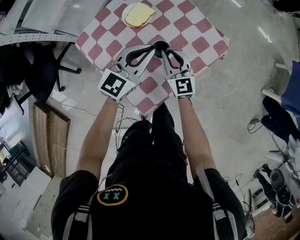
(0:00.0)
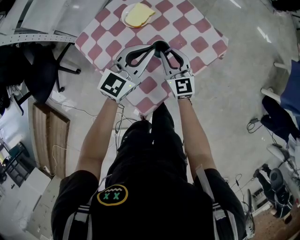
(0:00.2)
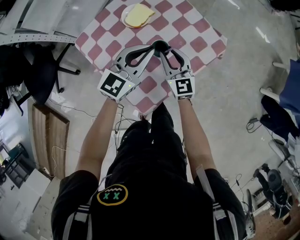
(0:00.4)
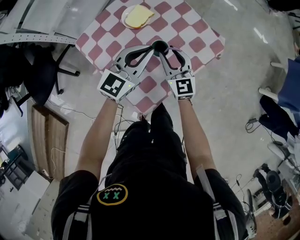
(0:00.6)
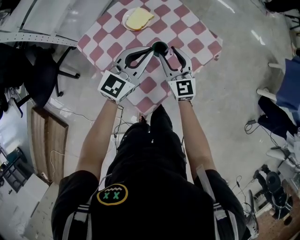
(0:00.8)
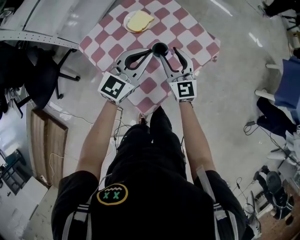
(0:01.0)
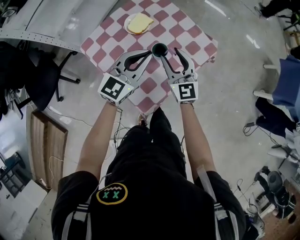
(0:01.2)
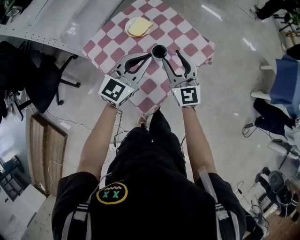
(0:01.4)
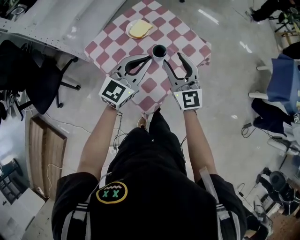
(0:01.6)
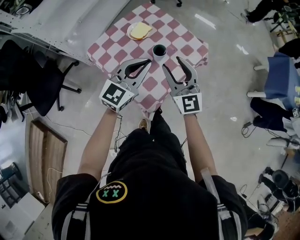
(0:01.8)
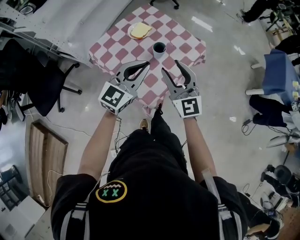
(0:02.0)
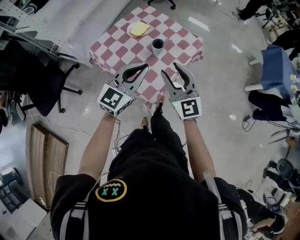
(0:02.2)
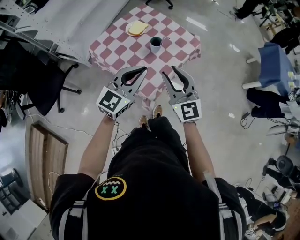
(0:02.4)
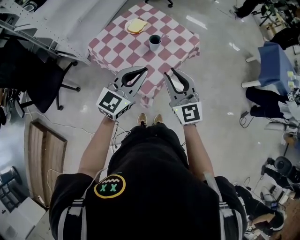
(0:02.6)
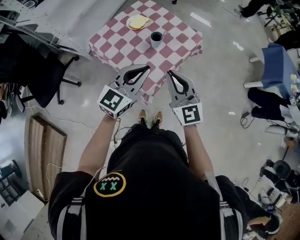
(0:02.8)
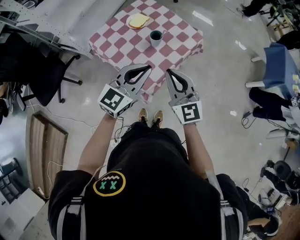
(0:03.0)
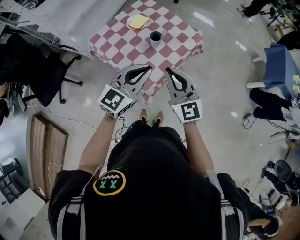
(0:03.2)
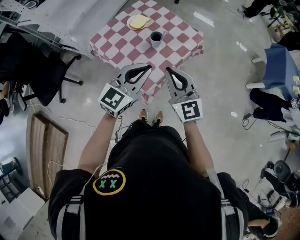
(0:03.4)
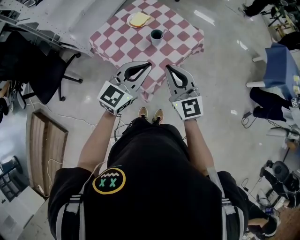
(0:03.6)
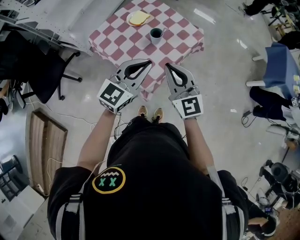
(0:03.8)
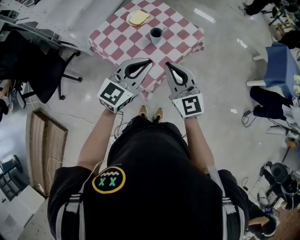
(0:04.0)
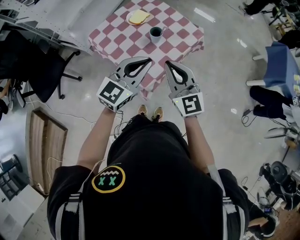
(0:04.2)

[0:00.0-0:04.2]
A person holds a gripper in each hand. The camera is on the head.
0:00.0 to 0:01.4: Both grippers travel together upward and backward, roughly 15 cm. The right gripper opens its fingers.
0:01.4 to 0:02.8: The right gripper goes some 25 cm backward and upward, and closes up, while the left gripper travels backward by roughly 20 cm.
0:02.8 to 0:04.2: There are only small adjustments of the grippers.

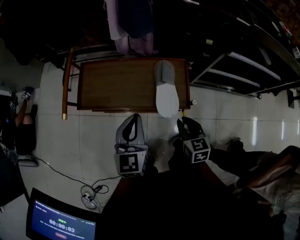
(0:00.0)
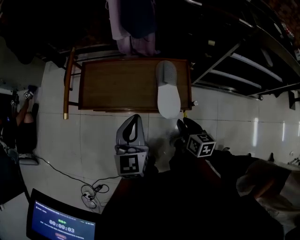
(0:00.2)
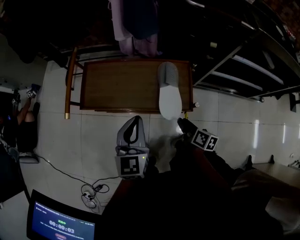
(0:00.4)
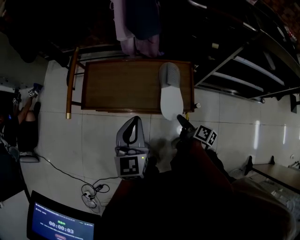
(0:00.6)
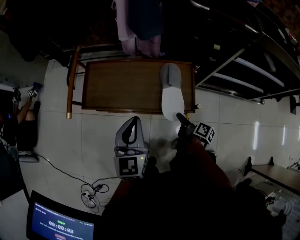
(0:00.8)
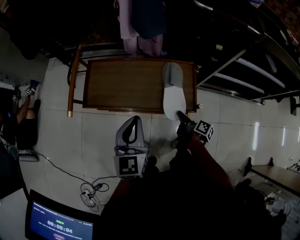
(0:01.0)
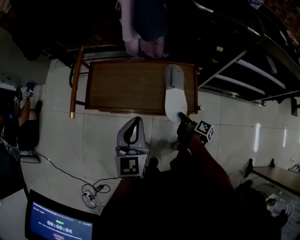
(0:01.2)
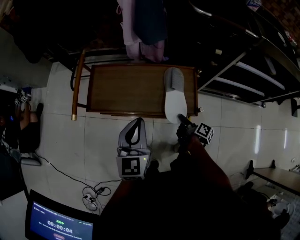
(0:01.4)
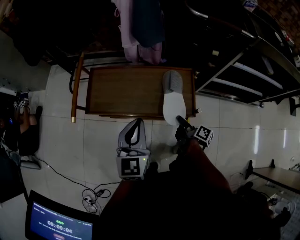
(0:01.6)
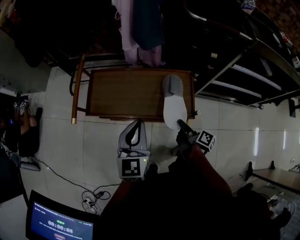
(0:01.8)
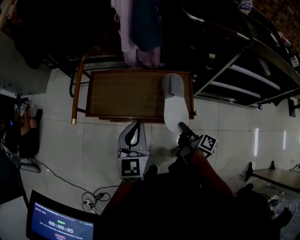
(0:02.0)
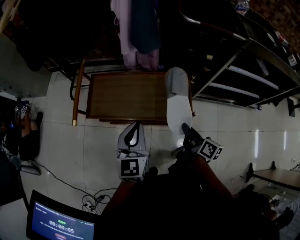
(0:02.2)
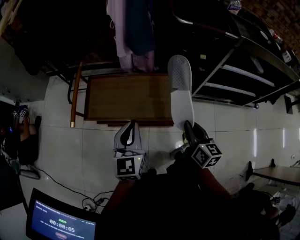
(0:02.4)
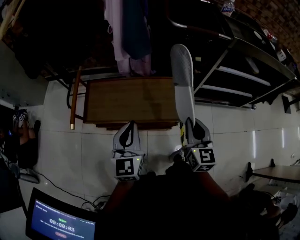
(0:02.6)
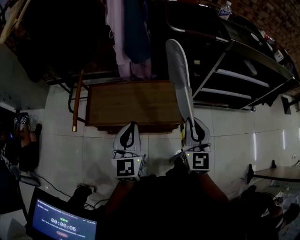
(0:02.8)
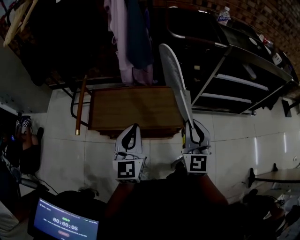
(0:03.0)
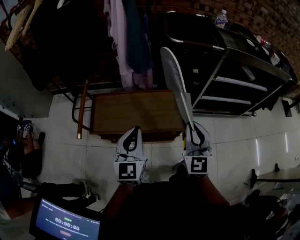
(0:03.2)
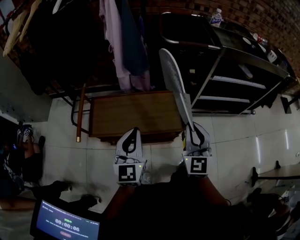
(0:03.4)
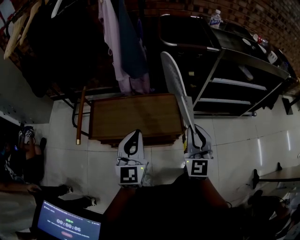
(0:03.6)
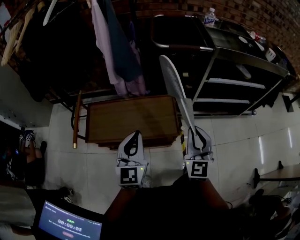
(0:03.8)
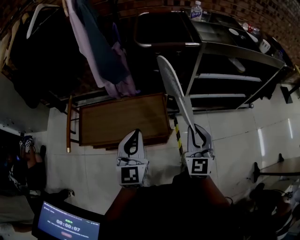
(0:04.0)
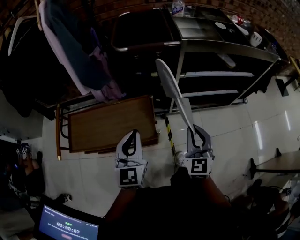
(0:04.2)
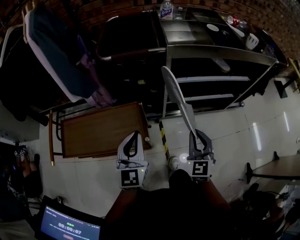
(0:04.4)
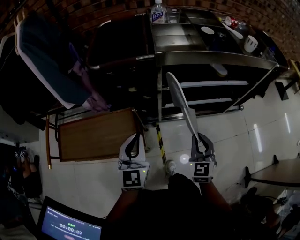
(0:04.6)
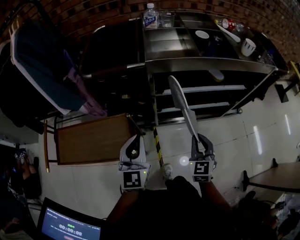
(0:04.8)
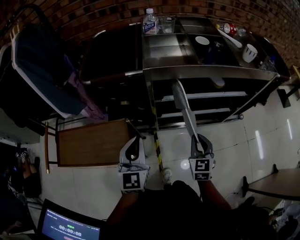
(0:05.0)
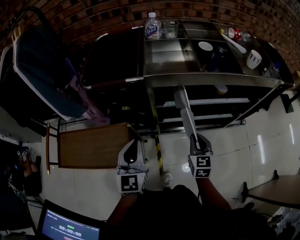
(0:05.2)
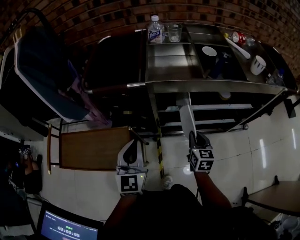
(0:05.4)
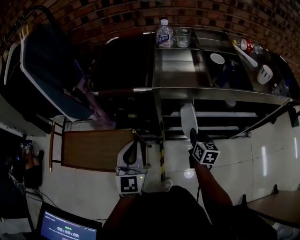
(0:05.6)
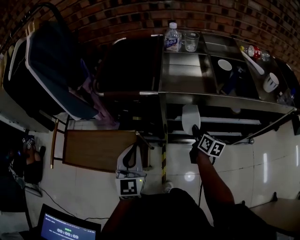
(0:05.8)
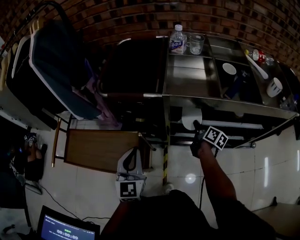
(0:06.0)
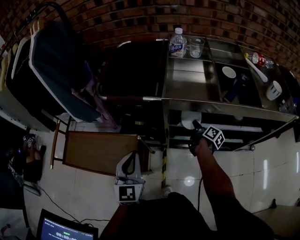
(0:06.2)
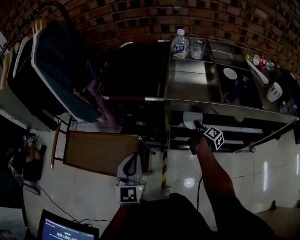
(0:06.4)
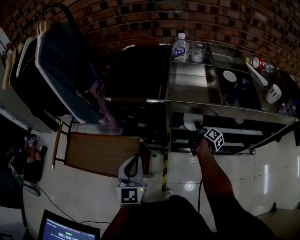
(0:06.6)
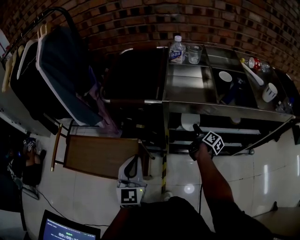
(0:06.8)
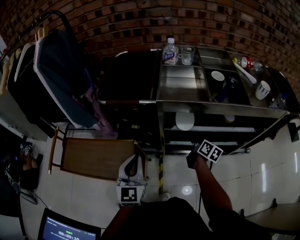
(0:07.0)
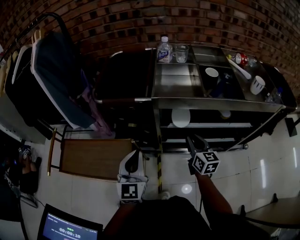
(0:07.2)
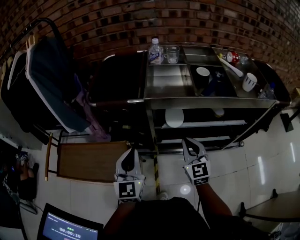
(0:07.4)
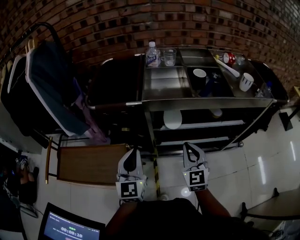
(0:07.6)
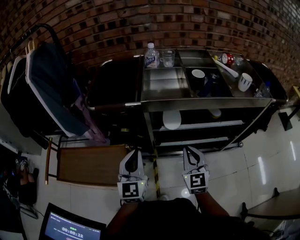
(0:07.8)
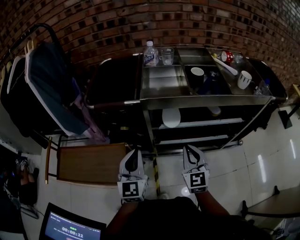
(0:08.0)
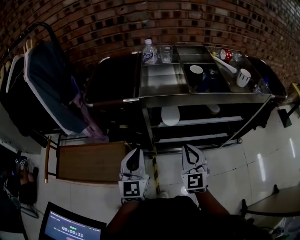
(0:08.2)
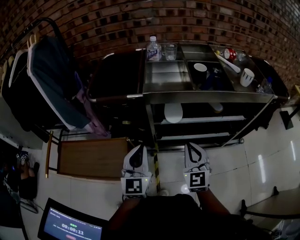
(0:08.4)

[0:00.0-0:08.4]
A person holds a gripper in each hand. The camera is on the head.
0:00.0 to 0:01.4: The right gripper heads downward and forward, covering about 10 cm, rotates around the line of its fingers by approximately 70 degrees, clockwise from behind, and opens, then closes again.
0:01.4 to 0:02.8: The left gripper goes about 5 cm upward. Meanwhile the right gripper heads upward, covering about 30 cm, and twists about 90 degrees counterclockwise, seen from behind.
0:02.8 to 0:04.2: The two grippers go approximately 20 cm to the right.
0:04.2 to 0:05.6: The grippers both shift forward and to the right by approximately 25 cm. The right gripper twists about 40 degrees clockwise, seen from behind.
0:05.6 to 0:07.0: The right gripper moves forward, some 5 cm, changes its angle by about 30 degrees, and opens.
0:07.0 to 0:08.4: The left gripper goes roughly 5 cm to the right. Meanwhile the right gripper travels upward and backward by roughly 20 cm, twists about 70 degrees counterclockwise, seen from behind, and closes.

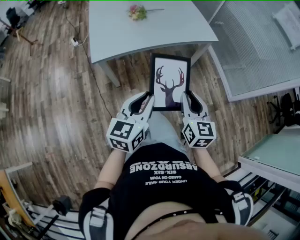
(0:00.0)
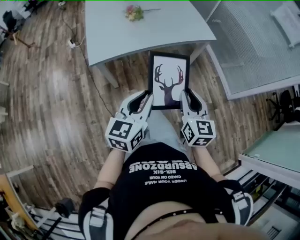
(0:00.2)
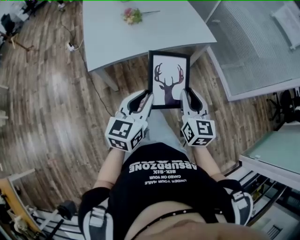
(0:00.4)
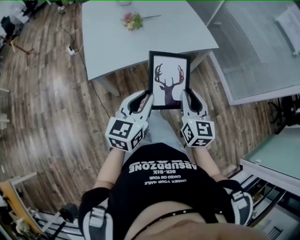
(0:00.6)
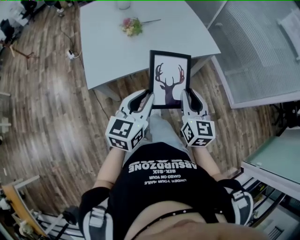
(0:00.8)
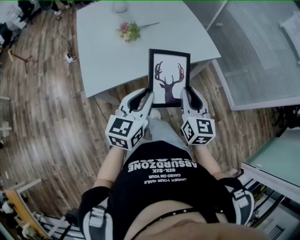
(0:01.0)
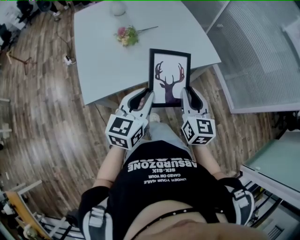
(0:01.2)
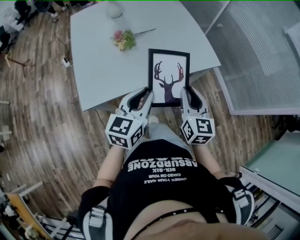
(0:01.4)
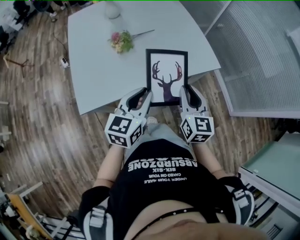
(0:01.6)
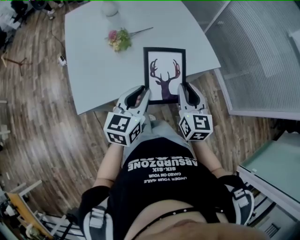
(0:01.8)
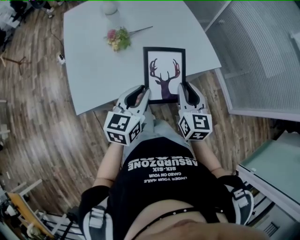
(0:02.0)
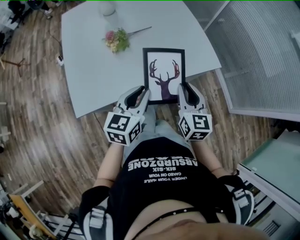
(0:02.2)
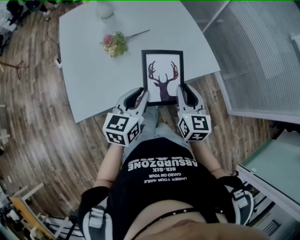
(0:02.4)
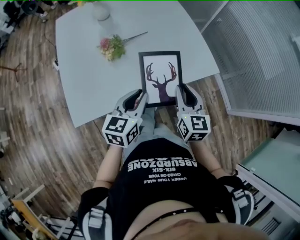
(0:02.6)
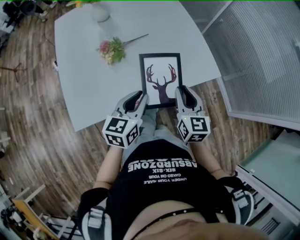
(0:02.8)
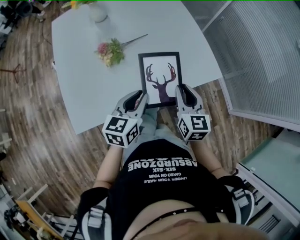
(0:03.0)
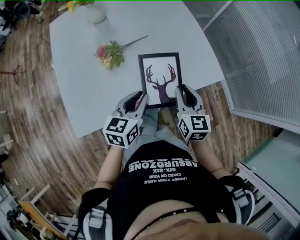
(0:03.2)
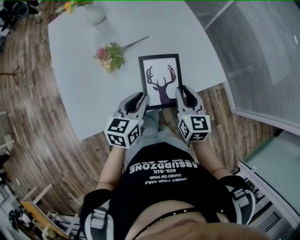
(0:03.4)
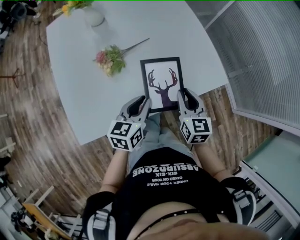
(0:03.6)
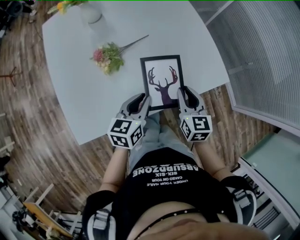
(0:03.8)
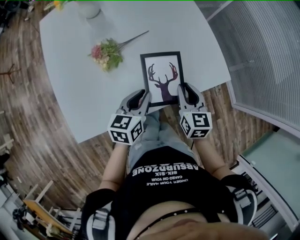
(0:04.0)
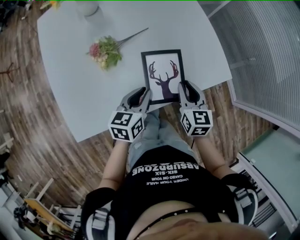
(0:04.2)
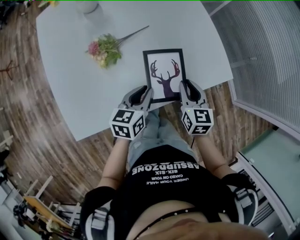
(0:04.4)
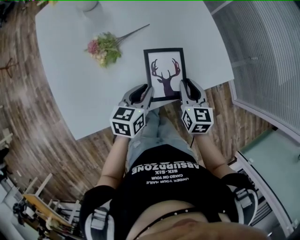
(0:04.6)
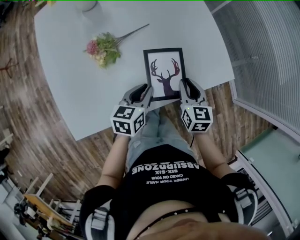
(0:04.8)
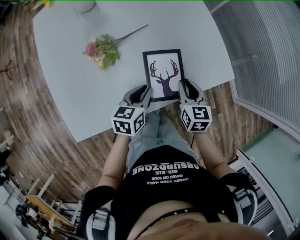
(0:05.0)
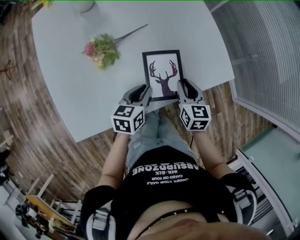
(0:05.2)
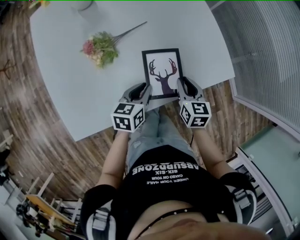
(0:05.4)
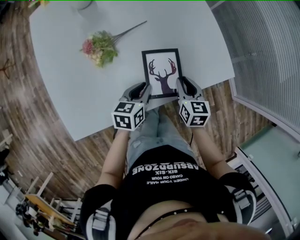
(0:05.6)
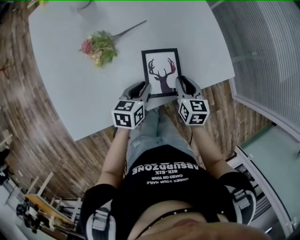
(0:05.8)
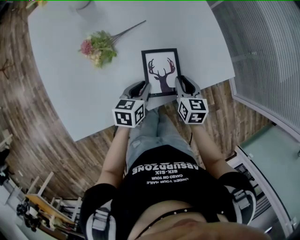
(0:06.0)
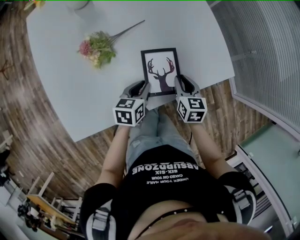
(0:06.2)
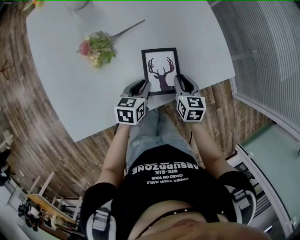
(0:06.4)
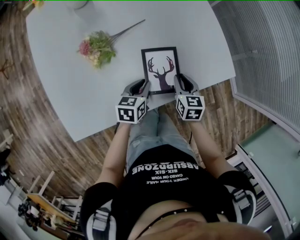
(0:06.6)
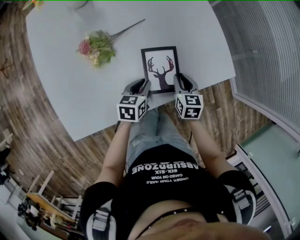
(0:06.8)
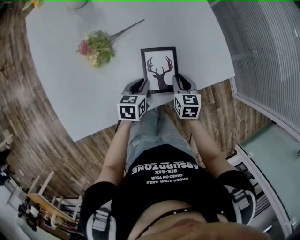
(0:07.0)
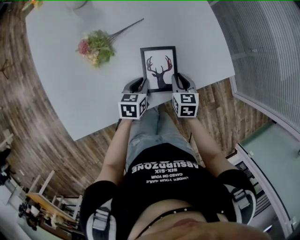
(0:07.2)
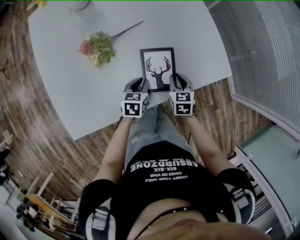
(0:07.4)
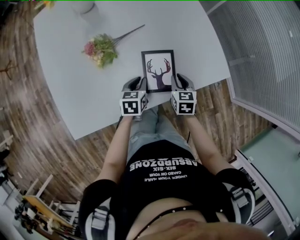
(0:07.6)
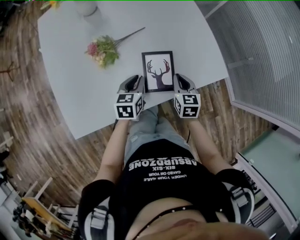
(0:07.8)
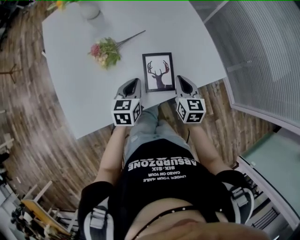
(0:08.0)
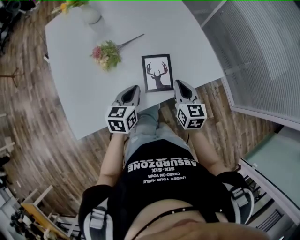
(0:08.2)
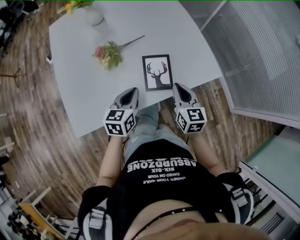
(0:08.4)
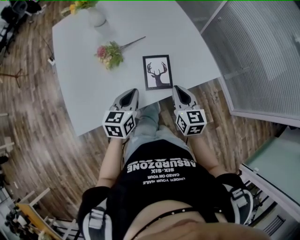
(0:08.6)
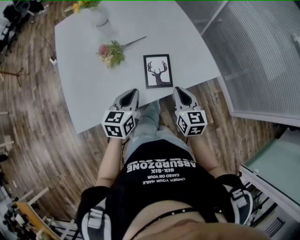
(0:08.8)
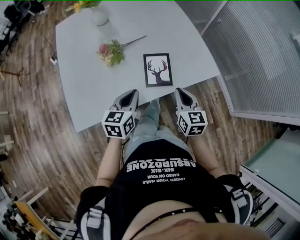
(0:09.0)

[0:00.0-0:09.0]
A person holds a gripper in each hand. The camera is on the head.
0:00.0 to 0:01.6: Both grippers travel together forward, about 35 cm.
0:01.6 to 0:03.0: Both grippers travel together forward and downward, some 10 cm.
0:03.0 to 0:04.4: The two grippers go approximately 10 cm downward and forward.
0:04.4 to 0:06.0: The grippers both shift downward by roughly 10 cm.
0:06.0 to 0:07.6: The grippers stay close to where they were, moving slightly.
0:07.6 to 0:09.0: The grippers both shift upward and backward by about 20 cm. The left gripper swivels approximately 20 degrees. Meanwhile the right gripper turns by some 20 degrees.

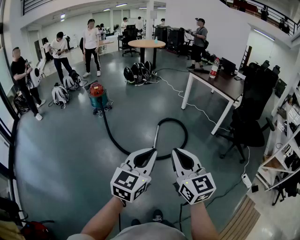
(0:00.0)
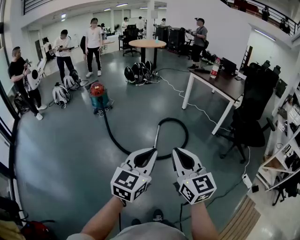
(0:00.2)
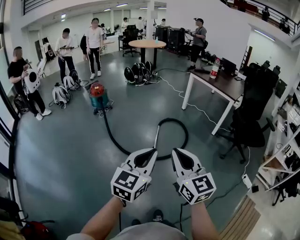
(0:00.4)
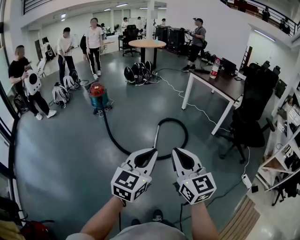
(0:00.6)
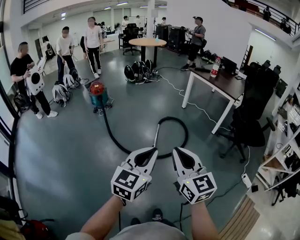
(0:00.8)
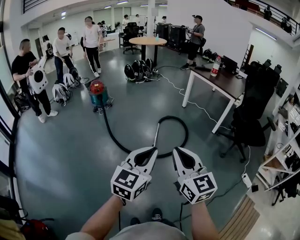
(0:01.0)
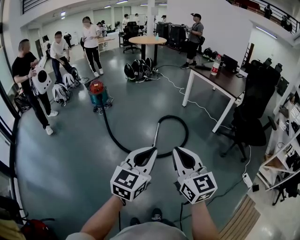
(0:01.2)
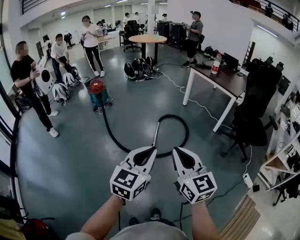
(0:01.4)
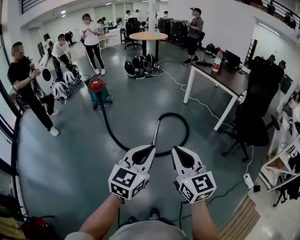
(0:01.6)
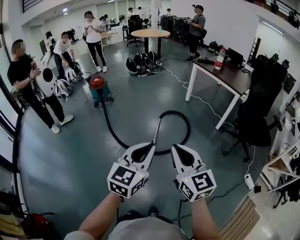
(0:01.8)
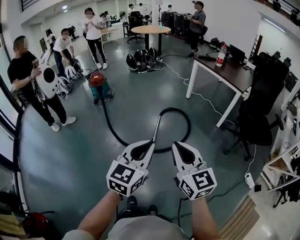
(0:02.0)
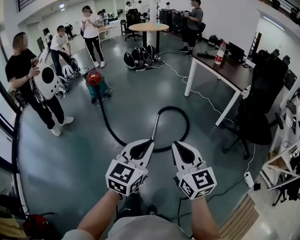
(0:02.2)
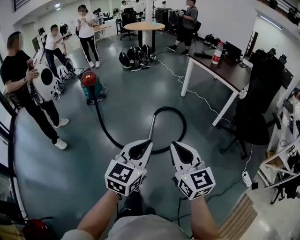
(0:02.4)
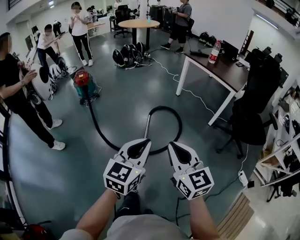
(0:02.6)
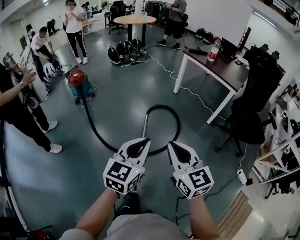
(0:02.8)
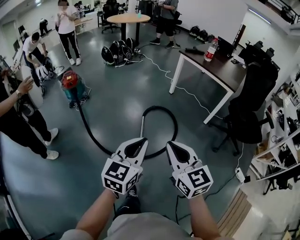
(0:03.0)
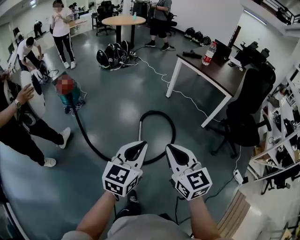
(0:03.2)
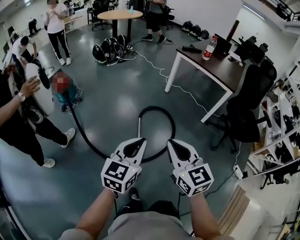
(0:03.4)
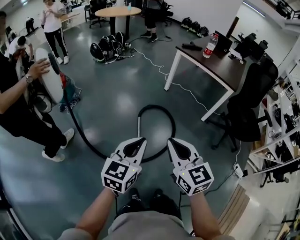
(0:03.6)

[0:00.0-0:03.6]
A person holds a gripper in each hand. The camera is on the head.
0:00.0 to 0:01.8: The grippers both shift forward and to the right by some 10 cm.
0:01.8 to 0:03.6: The grippers both shift forward by roughly 35 cm.
